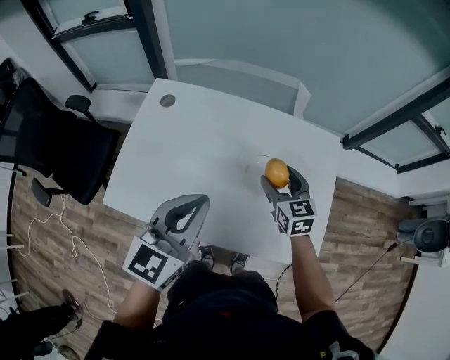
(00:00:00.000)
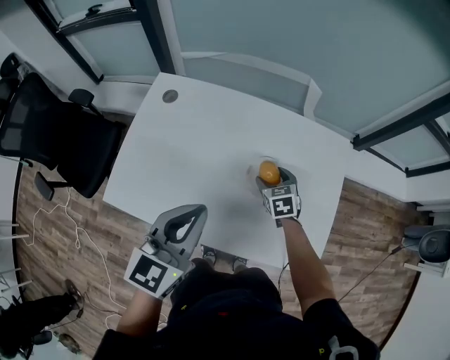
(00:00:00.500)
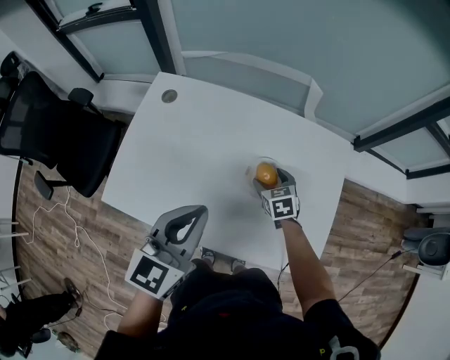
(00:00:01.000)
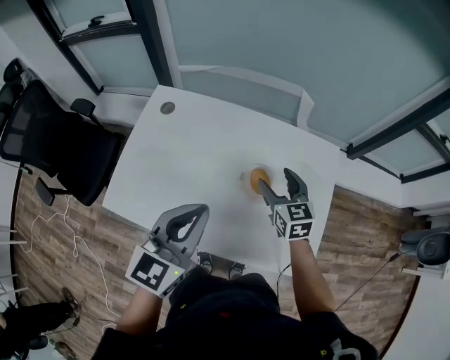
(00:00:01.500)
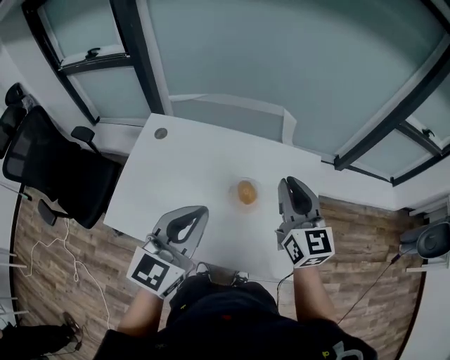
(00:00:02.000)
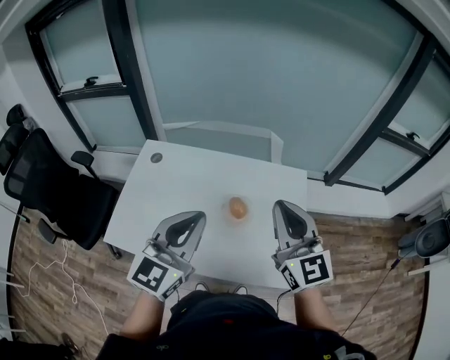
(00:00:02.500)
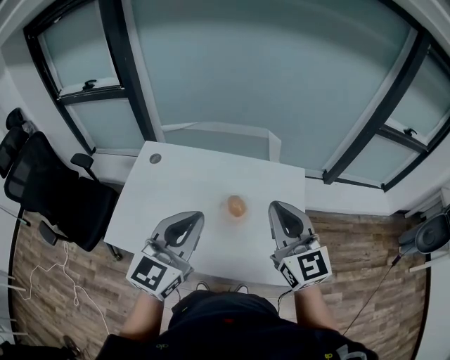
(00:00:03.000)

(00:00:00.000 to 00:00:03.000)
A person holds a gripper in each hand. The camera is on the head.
00:00:00.000 - 00:00:01.500: The right gripper goes downward and returns, approximately 15 cm each way.
00:00:01.500 - 00:00:03.000: The left gripper is displaced upward, to the right and backward by some 15 cm, while the right gripper moves upward and backward, some 30 cm, rotates approximately 30 degrees, and closes up.

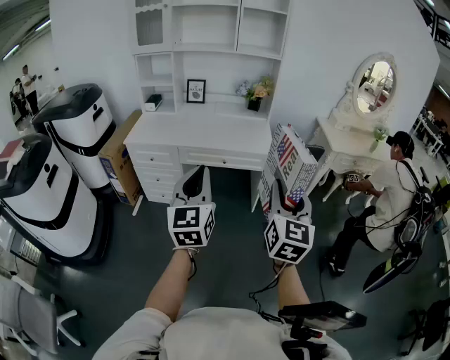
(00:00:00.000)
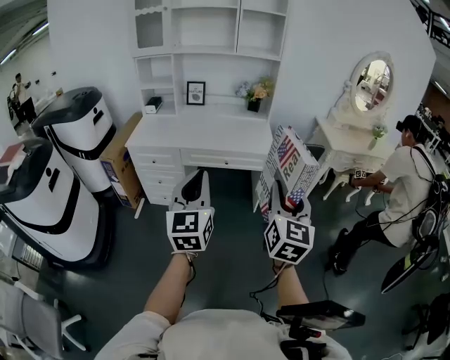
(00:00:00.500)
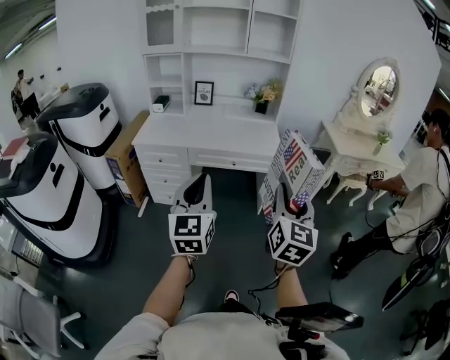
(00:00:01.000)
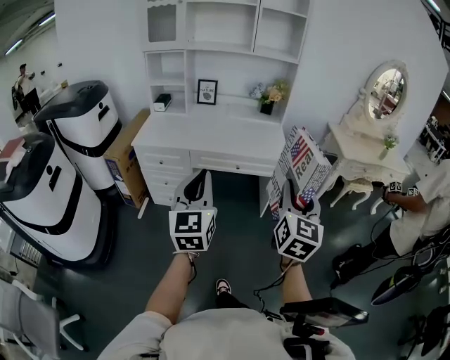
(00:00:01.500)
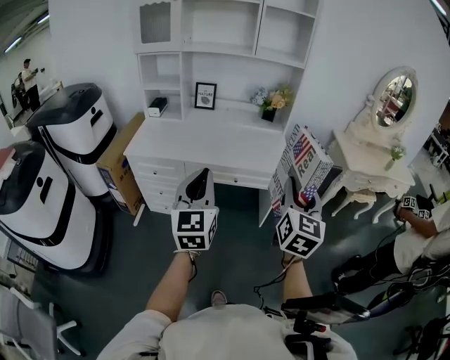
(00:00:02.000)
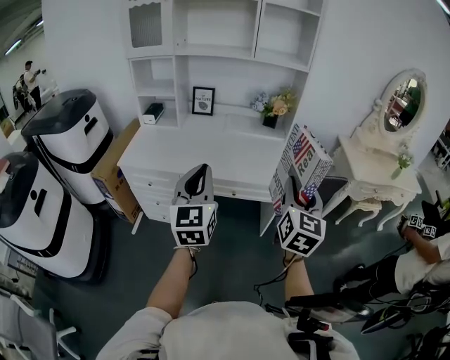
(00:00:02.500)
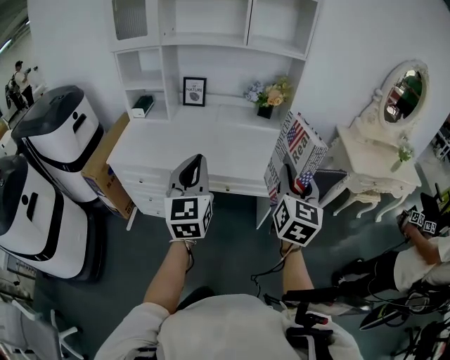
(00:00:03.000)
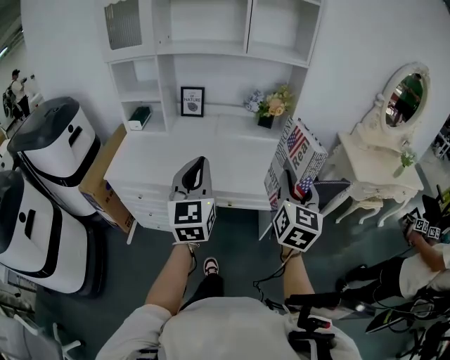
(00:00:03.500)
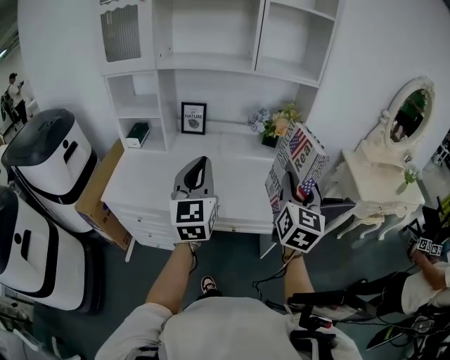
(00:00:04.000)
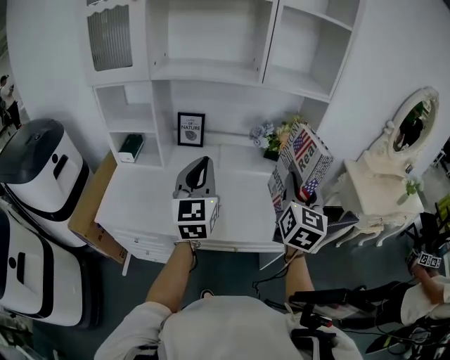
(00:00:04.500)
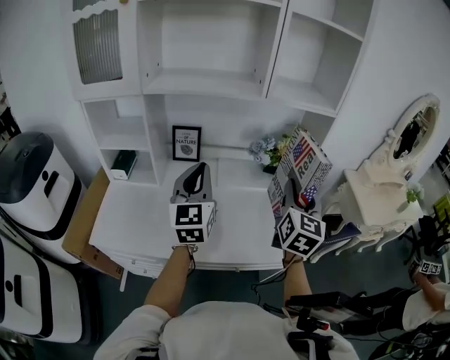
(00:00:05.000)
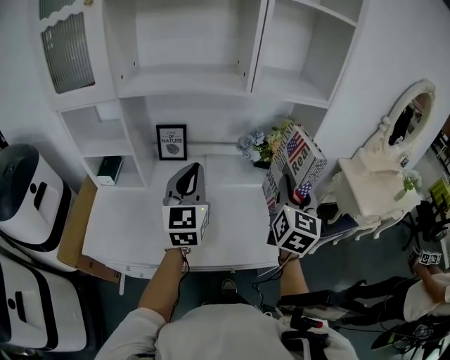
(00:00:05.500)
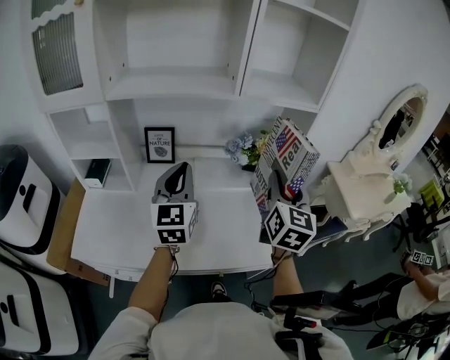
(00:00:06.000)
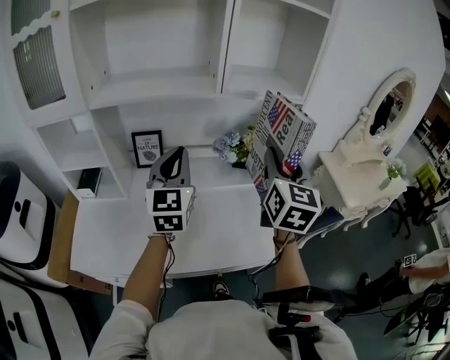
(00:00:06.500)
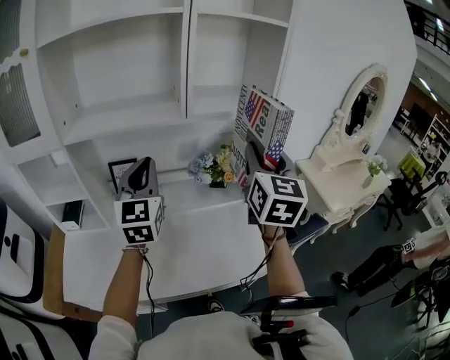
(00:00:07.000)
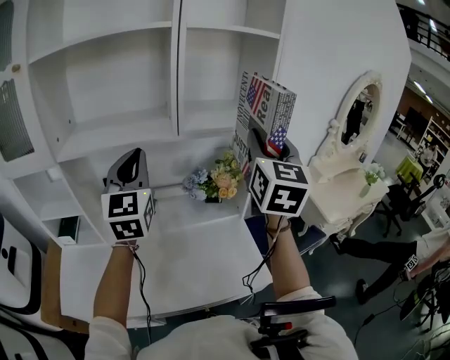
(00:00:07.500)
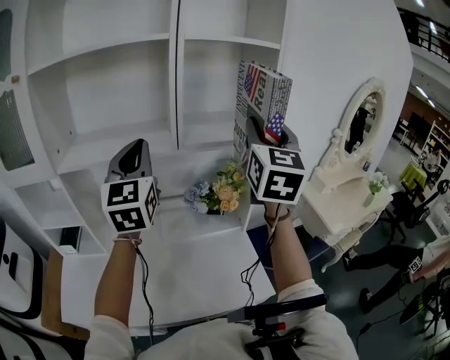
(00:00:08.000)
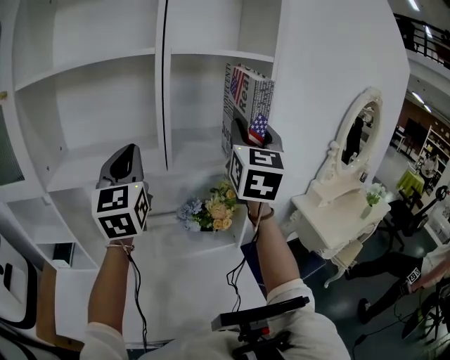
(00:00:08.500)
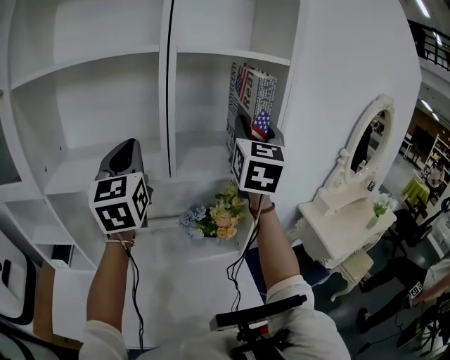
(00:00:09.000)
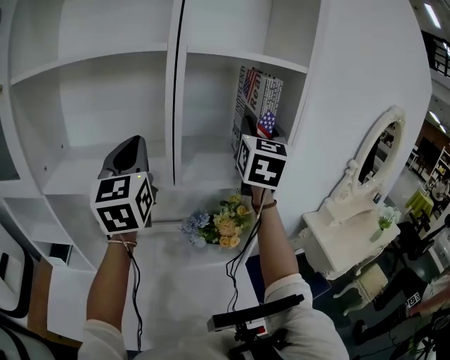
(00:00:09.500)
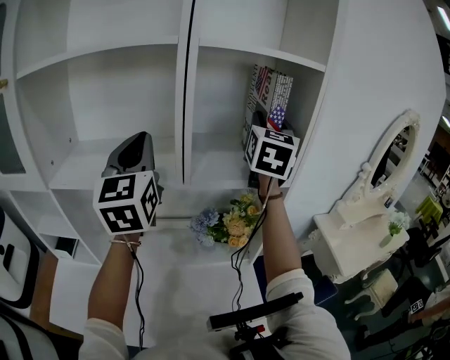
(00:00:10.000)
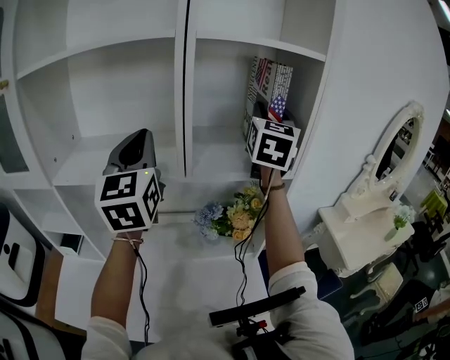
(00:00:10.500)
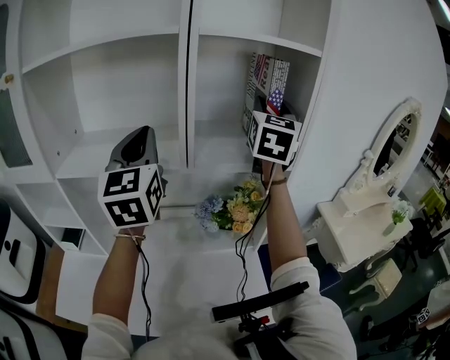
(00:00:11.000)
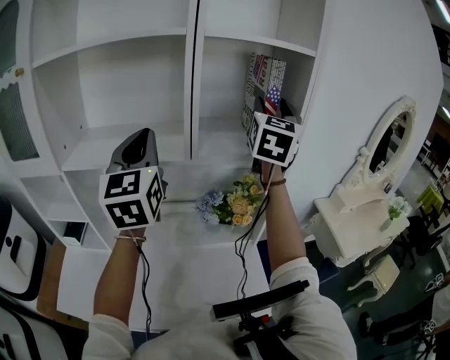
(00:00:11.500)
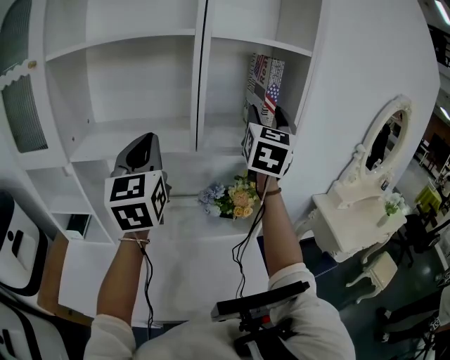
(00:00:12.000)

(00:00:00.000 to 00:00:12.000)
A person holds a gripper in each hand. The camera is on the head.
00:00:00.000 - 00:00:02.000: The right gripper moves forward, some 20 cm; the left gripper is displaced forward and to the left by about 15 cm.
00:00:02.000 - 00:00:04.000: The grippers both shift forward by about 30 cm.
00:00:04.000 - 00:00:06.000: Both grippers travel together forward, roughly 25 cm.
00:00:06.000 - 00:00:08.000: Both grippers move upward and forward, approximately 25 cm.
00:00:08.000 - 00:00:10.000: The right gripper is displaced forward by roughly 20 cm, while the left gripper is displaced forward by roughly 10 cm.
00:00:10.000 - 00:00:12.000: The grippers both shift backward by about 10 cm.

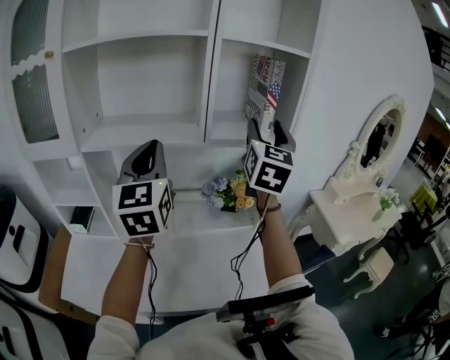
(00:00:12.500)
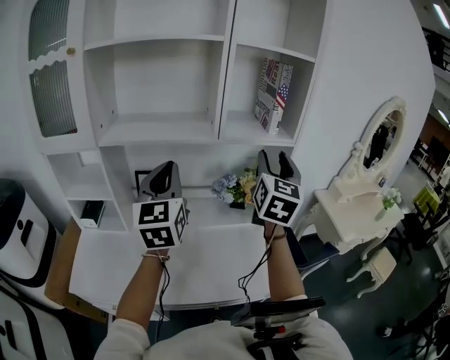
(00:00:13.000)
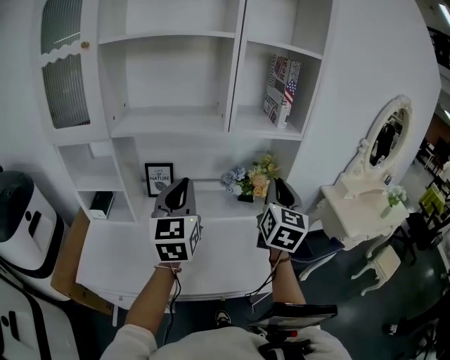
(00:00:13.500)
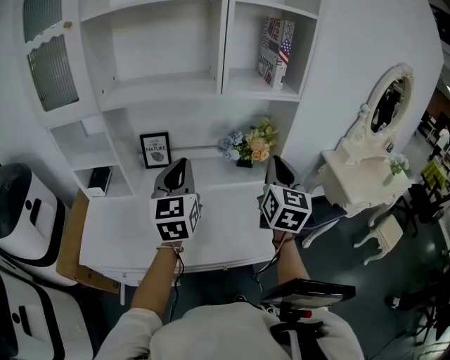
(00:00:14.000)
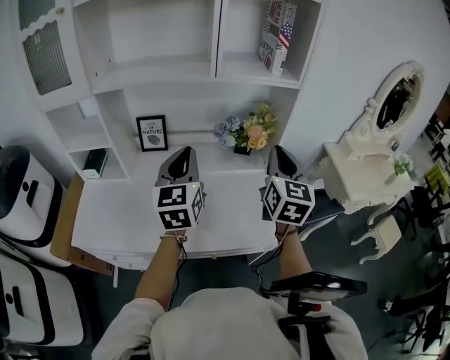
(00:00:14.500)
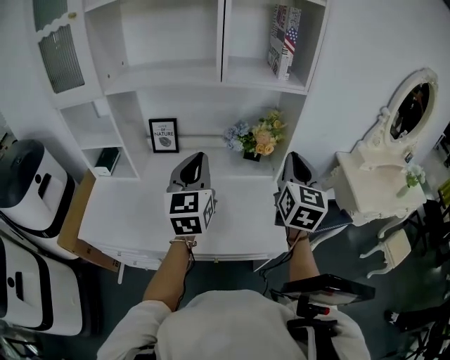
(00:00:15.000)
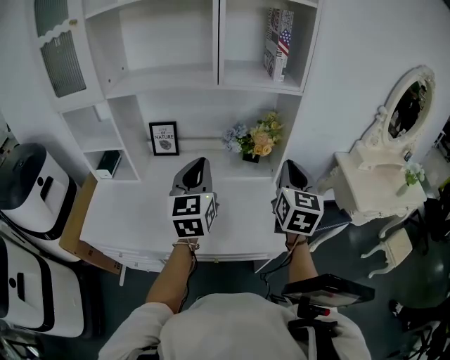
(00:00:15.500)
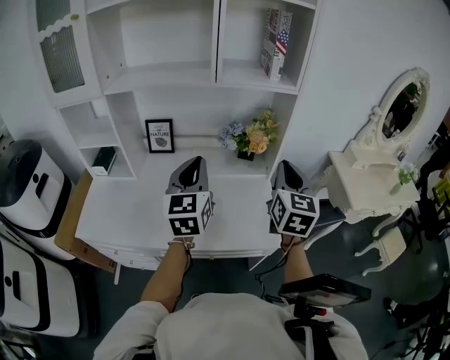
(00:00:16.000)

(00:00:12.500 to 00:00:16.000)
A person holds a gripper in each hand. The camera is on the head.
00:00:12.500 - 00:00:14.500: The left gripper is displaced downward by some 15 cm; the right gripper travels downward and backward by approximately 25 cm, and closes up.
00:00:14.500 - 00:00:16.000: The right gripper changes place by roughly 5 cm; the left gripper changes place by approximately 5 cm.

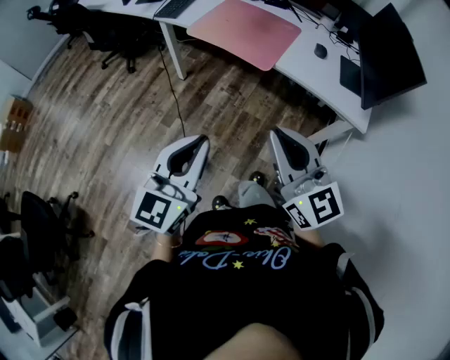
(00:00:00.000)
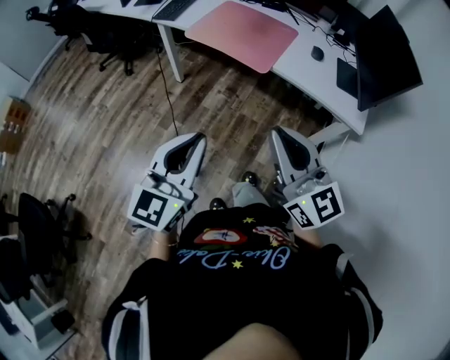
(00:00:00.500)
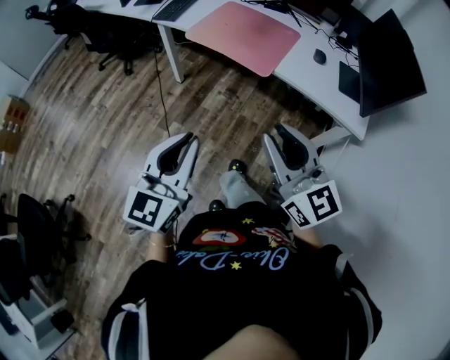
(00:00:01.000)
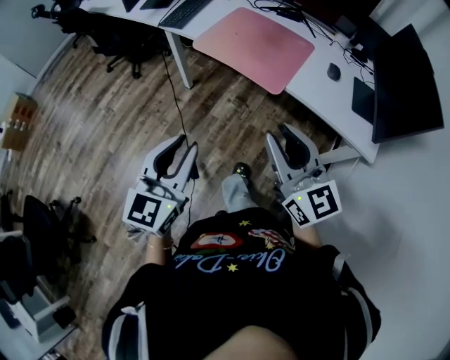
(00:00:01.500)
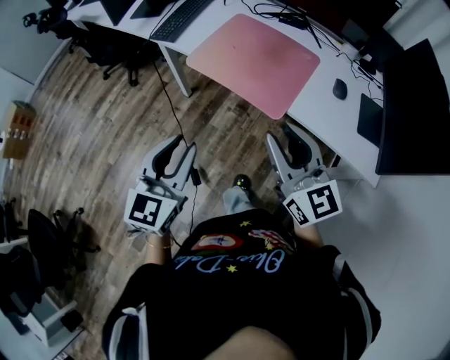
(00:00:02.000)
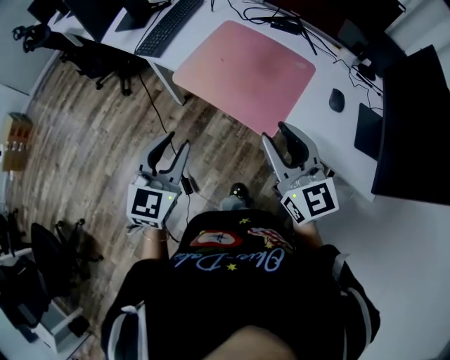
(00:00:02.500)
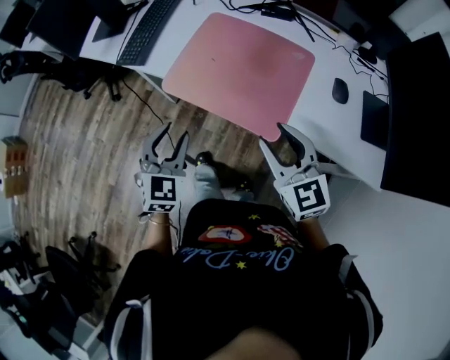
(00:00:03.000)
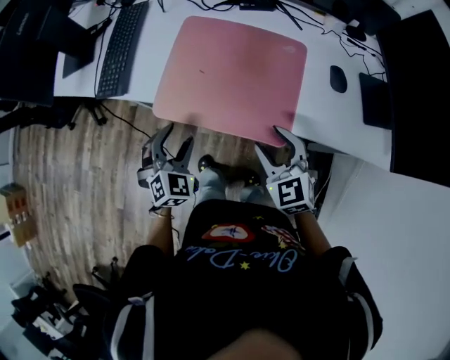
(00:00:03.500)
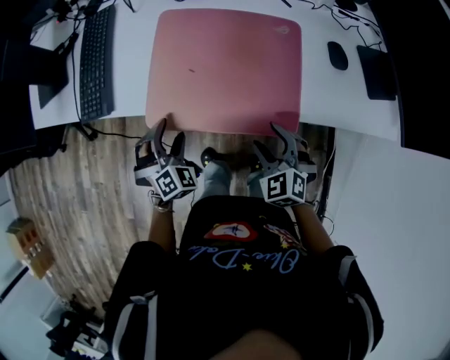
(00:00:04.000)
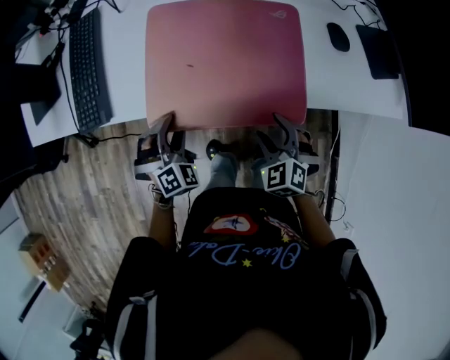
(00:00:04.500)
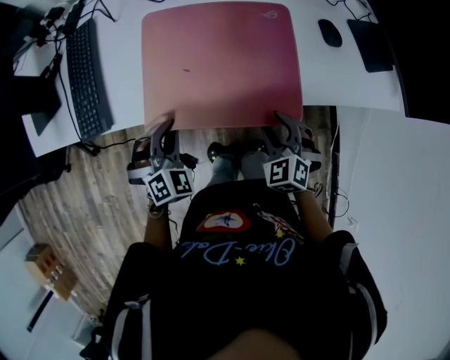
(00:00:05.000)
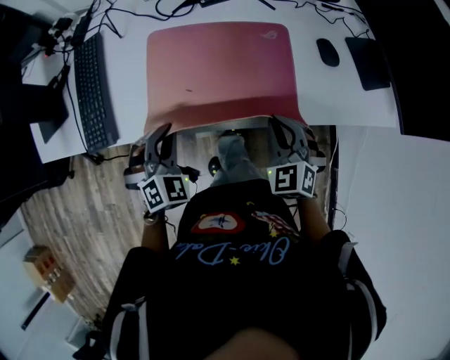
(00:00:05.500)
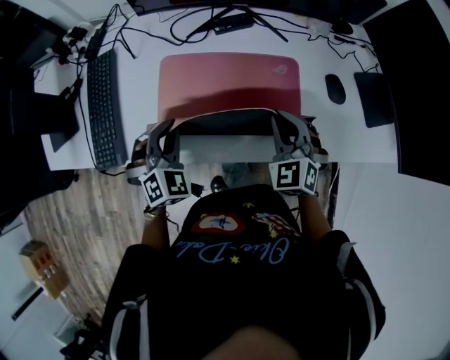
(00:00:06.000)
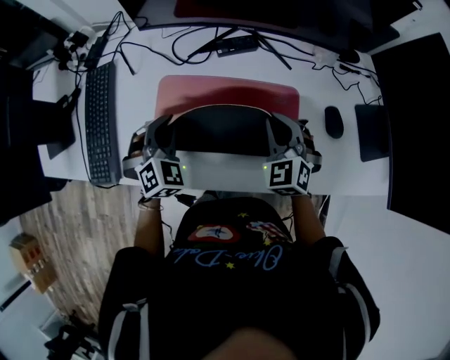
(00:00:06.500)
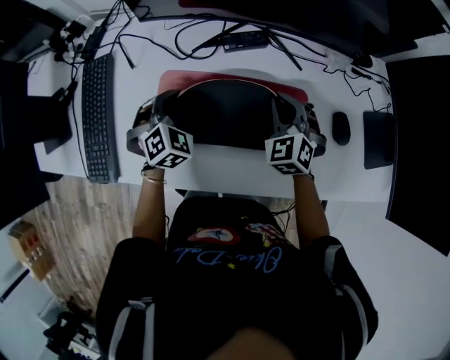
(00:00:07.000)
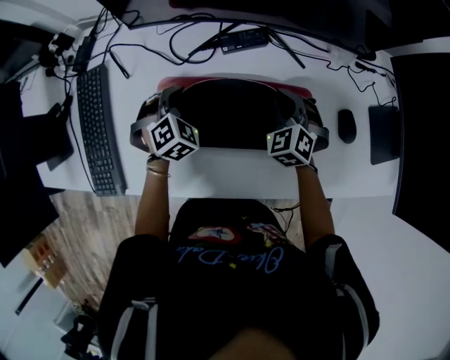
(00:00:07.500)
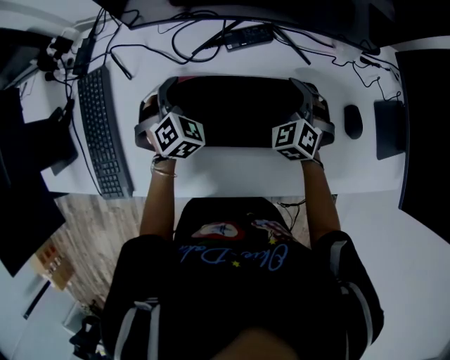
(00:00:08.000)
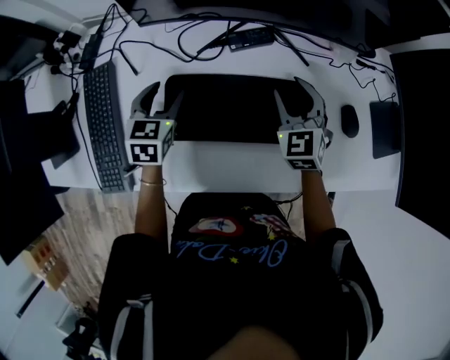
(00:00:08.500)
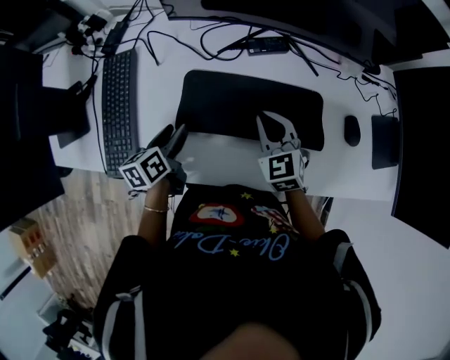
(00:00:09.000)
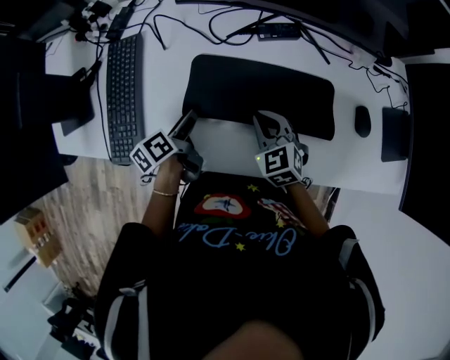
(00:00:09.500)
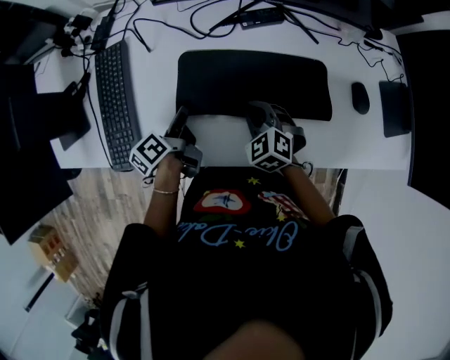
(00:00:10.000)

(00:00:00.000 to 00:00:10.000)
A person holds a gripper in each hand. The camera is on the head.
00:00:00.000 - 00:00:02.000: Both grippers move forward, some 25 cm. The right gripper opens.
00:00:02.000 - 00:00:04.000: The left gripper is displaced forward and downward by approximately 40 cm, twists some 60 degrees clockwise, seen from behind, and opens. Meanwhile the right gripper travels downward and forward by some 30 cm, tilts its fingers some 40 degrees downward, and opens.
00:00:04.000 - 00:00:06.000: The two grippers go approximately 20 cm forward and upward. The left gripper closes up, while the right gripper closes up.
00:00:06.000 - 00:00:08.000: Both grippers travel together forward and downward, some 20 cm. The right gripper opens up. Meanwhile the left gripper opens.
00:00:08.000 - 00:00:10.000: The right gripper goes roughly 20 cm to the left and backward, swivels some 20 degrees, and closes up. Meanwhile the left gripper shifts roughly 15 cm backward and to the left, rolls counterclockwise, seen from behind, by about 110 degrees, and closes its fingers.
